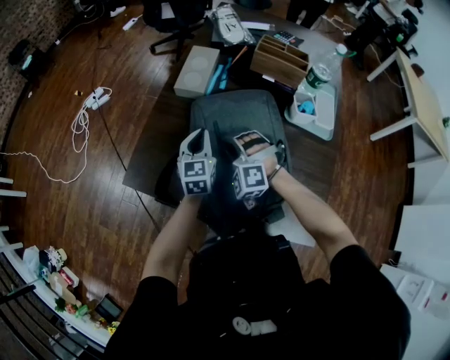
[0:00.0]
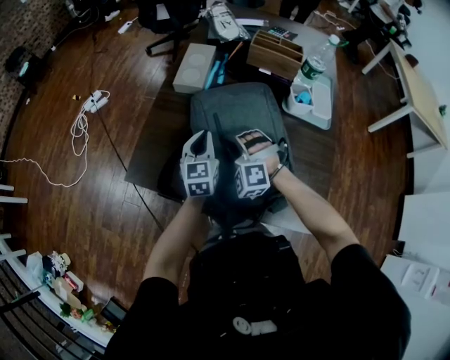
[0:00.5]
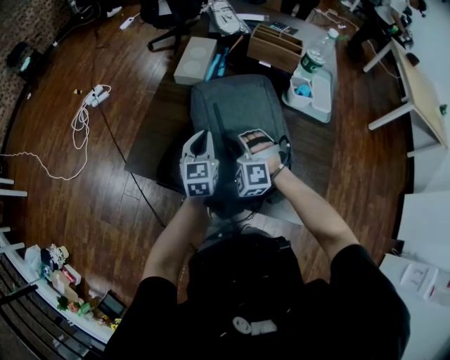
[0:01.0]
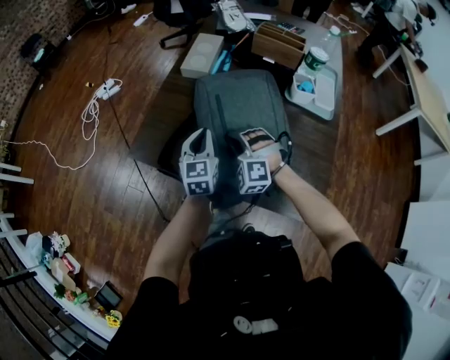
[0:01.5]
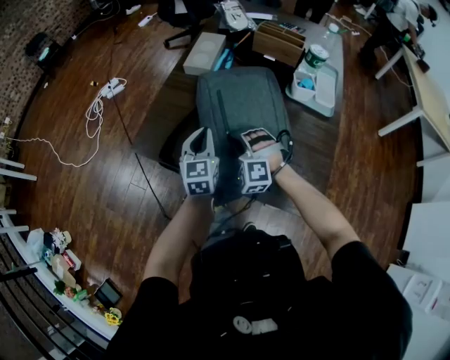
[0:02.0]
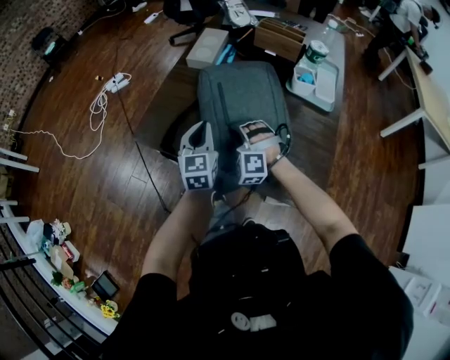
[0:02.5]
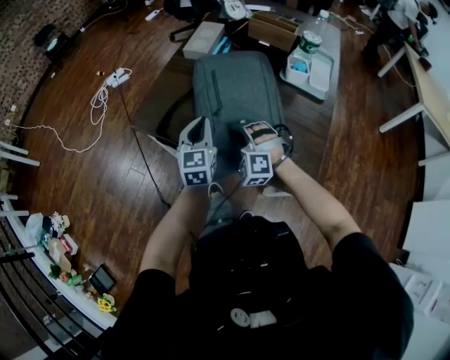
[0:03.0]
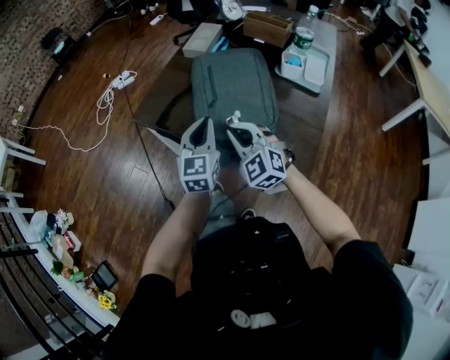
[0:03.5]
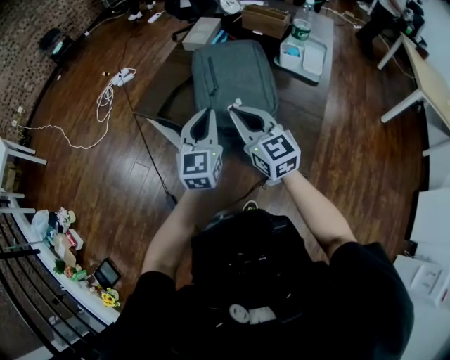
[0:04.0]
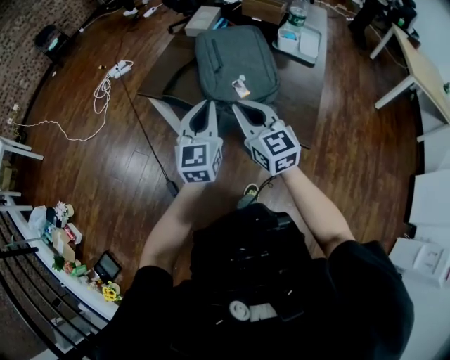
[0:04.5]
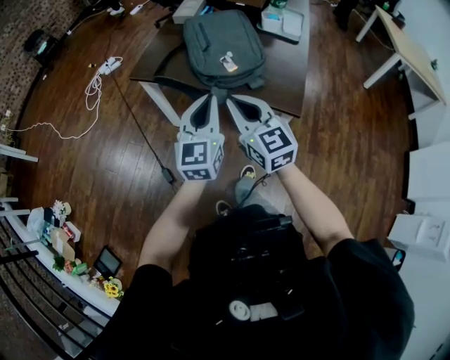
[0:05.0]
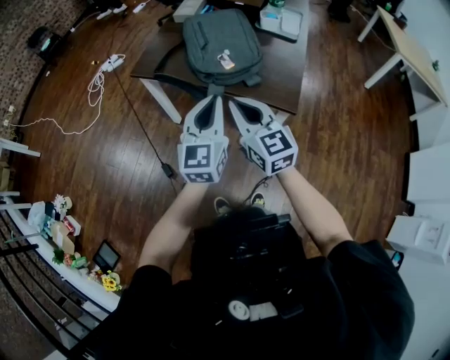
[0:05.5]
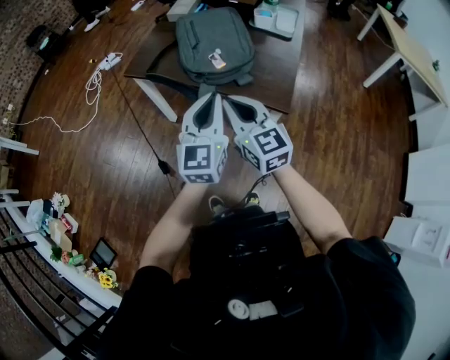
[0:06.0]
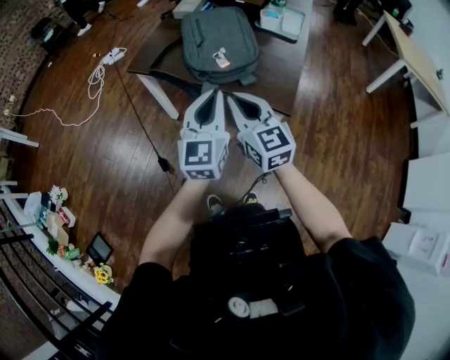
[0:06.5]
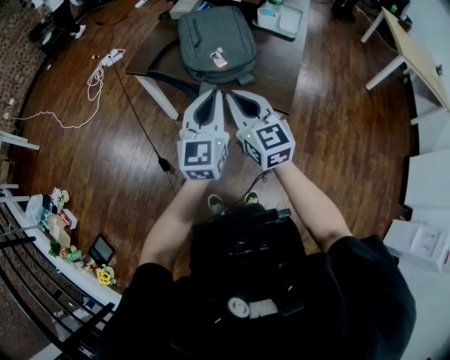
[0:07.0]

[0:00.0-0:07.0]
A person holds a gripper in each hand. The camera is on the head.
0:00.0 to 0:02.0: The two grippers go some 10 cm backward.
0:02.0 to 0:03.5: The two grippers go some 15 cm backward and upward. The right gripper swivels some 40 degrees.
0:03.5 to 0:05.0: The left gripper heads backward, covering some 20 cm. Meanwhile the right gripper moves backward and upward, some 20 cm, and rotates about 40 degrees.
0:05.0 to 0:07.0: The two grippers go about 5 cm to the right.

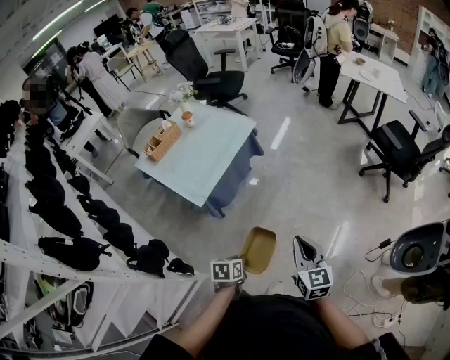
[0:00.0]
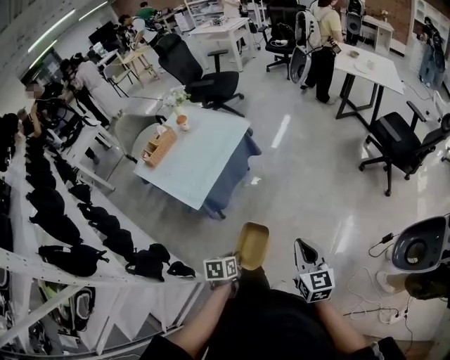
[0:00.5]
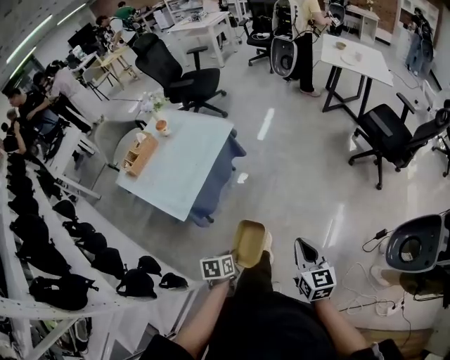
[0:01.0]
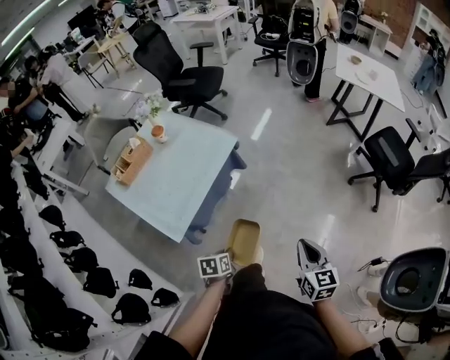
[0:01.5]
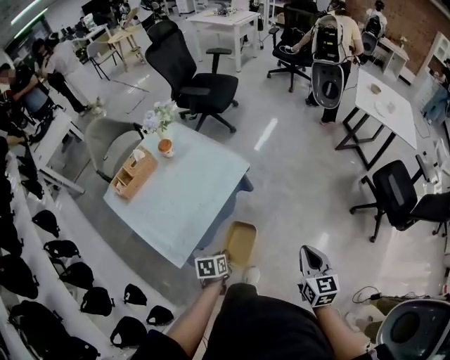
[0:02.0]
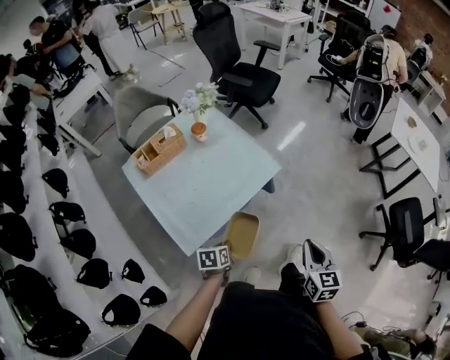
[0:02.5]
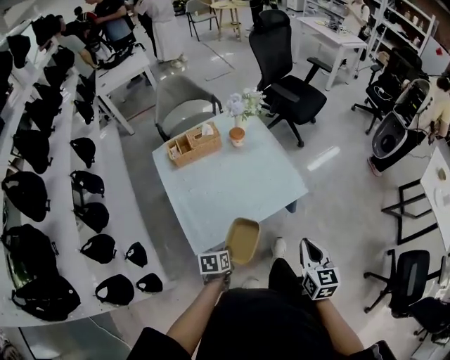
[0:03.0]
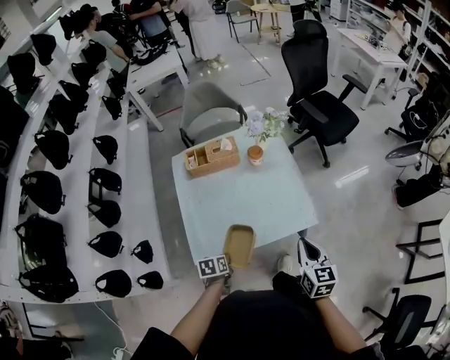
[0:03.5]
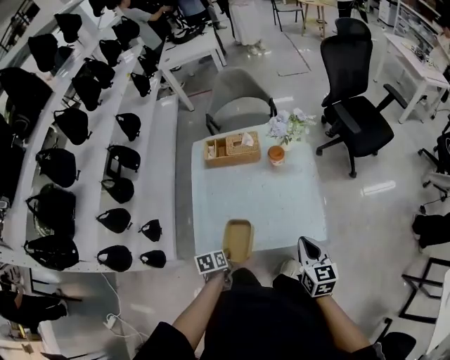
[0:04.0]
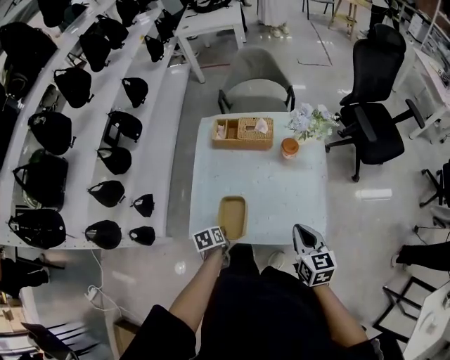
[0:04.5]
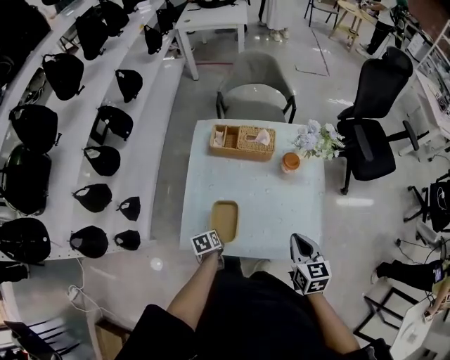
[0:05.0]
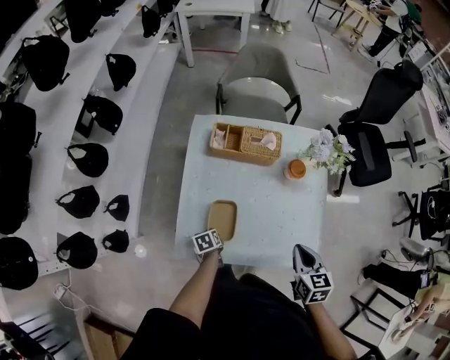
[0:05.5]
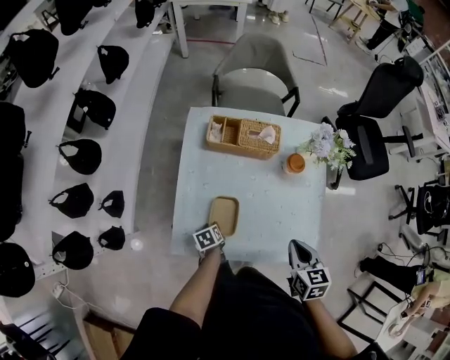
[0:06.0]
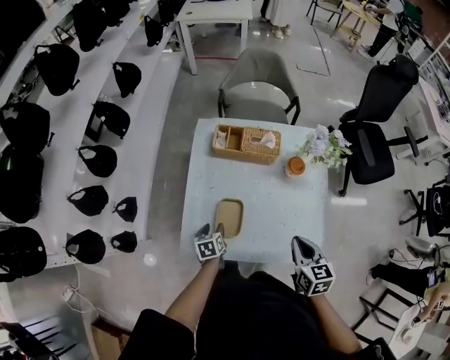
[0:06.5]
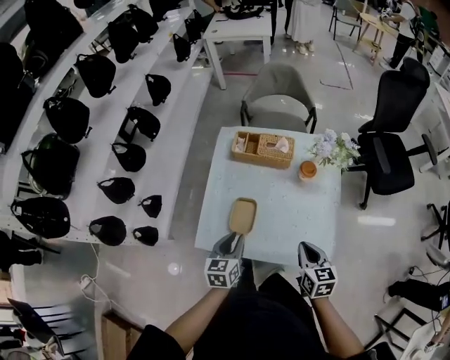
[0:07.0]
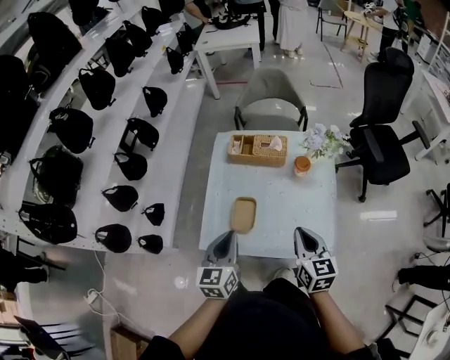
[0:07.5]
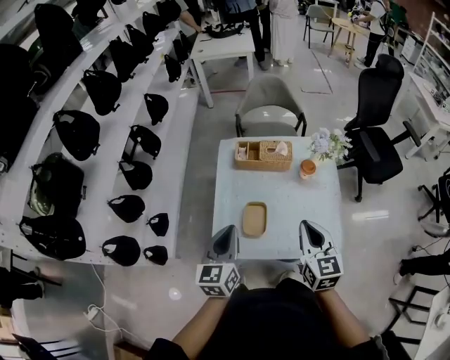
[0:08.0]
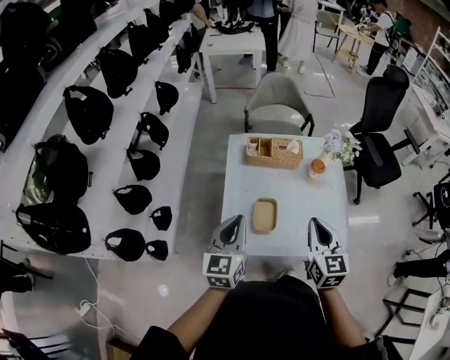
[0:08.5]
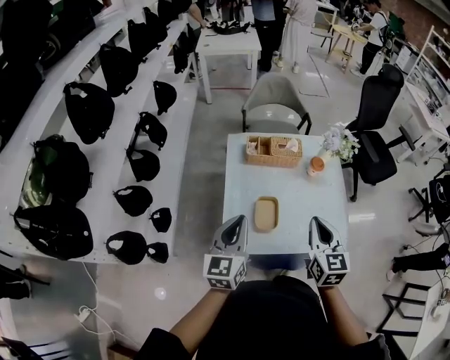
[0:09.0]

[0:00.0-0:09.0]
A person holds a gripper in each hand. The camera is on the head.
0:00.0 to 0:02.0: The grippers both shift forward by roughly 40 cm.
0:02.0 to 0:04.5: The left gripper ends up roughly 25 cm from where it was, and twists roughly 60 degrees counterclockwise, seen from behind. Meanwhile the right gripper ends up about 50 cm from where it was, and changes its angle by roughly 70 degrees.
0:04.5 to 0:07.0: The right gripper goes forward and returns, some 10 cm each way; the left gripper is displaced upward by some 15 cm, tilts its fingers some 30 degrees upward, and opens up.
0:07.0 to 0:09.0: The left gripper shifts some 25 cm upward and to the left, turns by approximately 20 degrees, and closes up; the right gripper heads to the left and upward, covering roughly 25 cm, and turns by roughly 20 degrees.

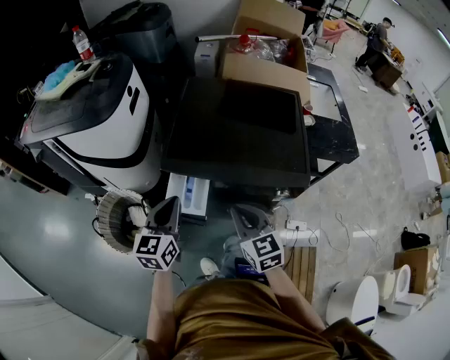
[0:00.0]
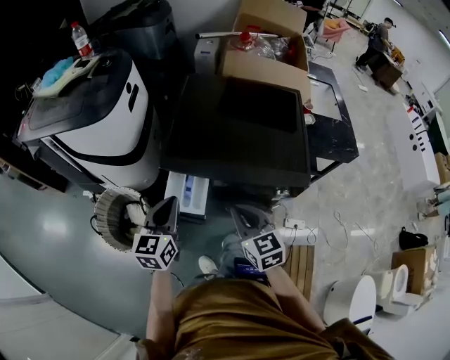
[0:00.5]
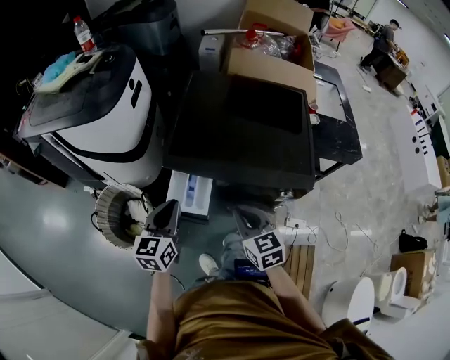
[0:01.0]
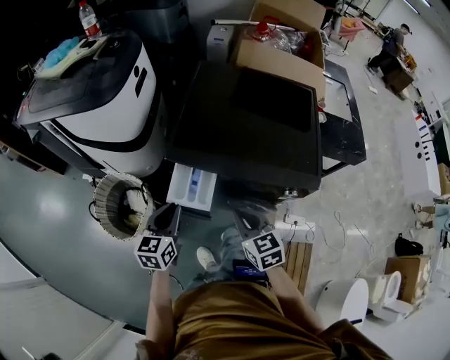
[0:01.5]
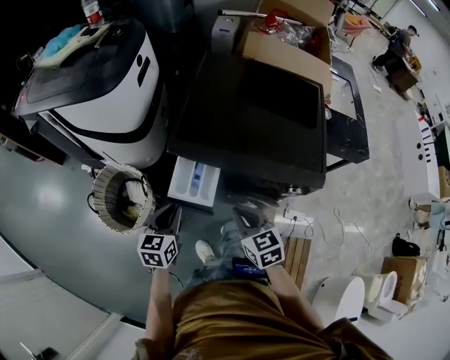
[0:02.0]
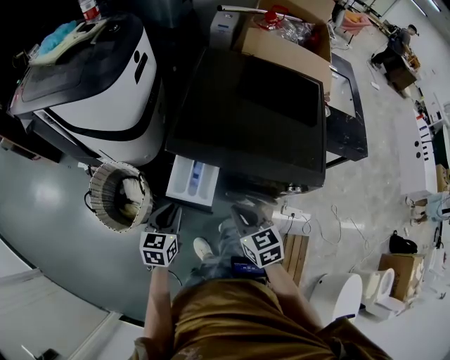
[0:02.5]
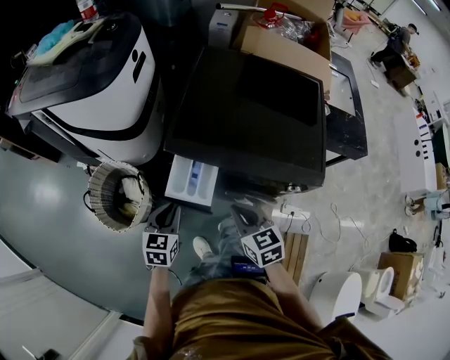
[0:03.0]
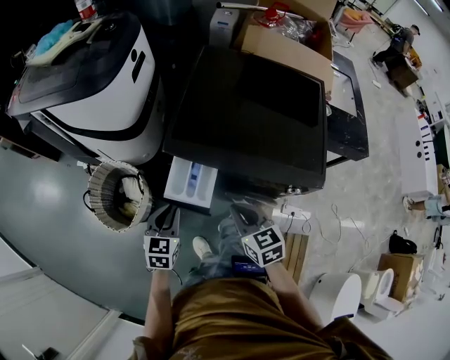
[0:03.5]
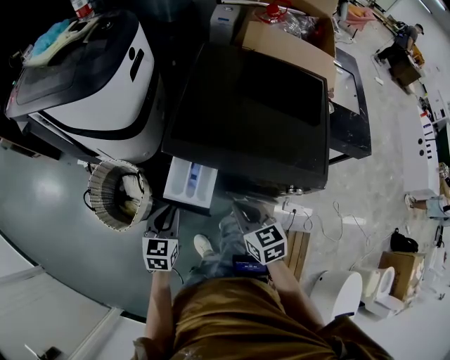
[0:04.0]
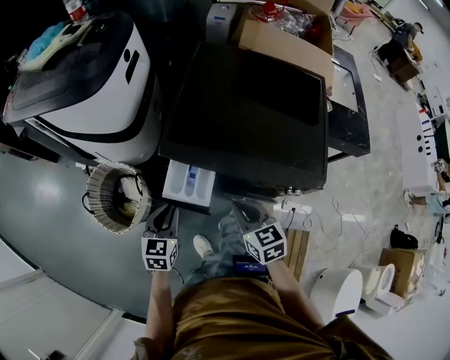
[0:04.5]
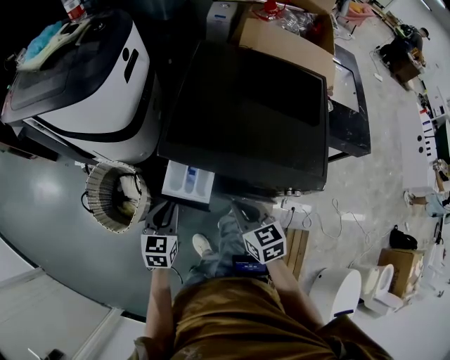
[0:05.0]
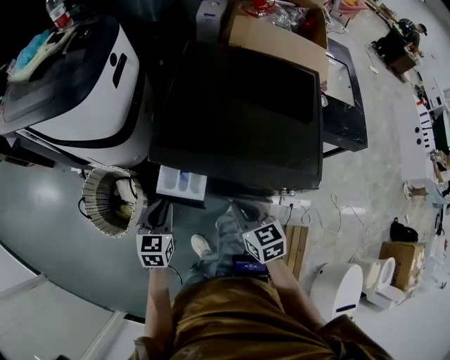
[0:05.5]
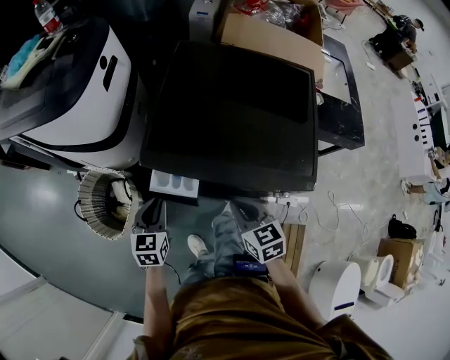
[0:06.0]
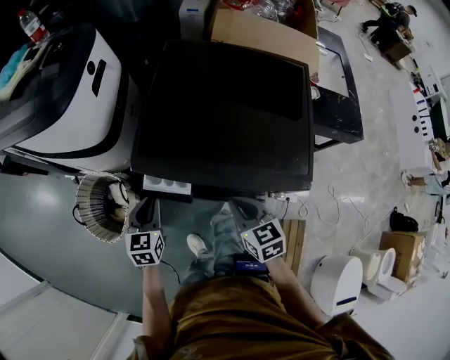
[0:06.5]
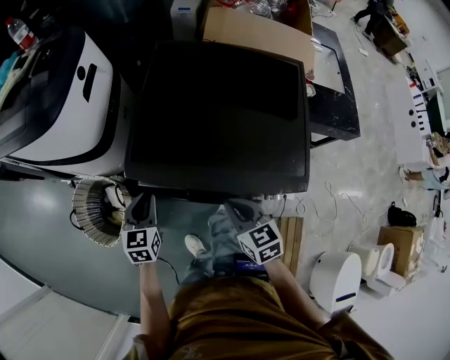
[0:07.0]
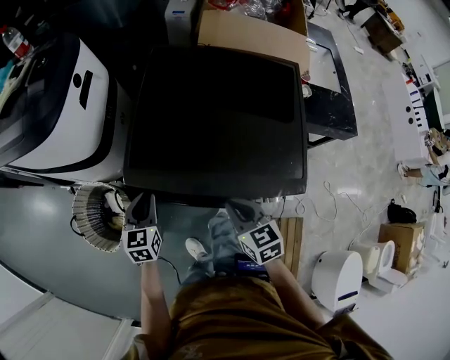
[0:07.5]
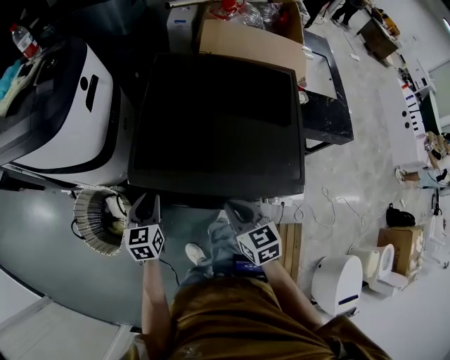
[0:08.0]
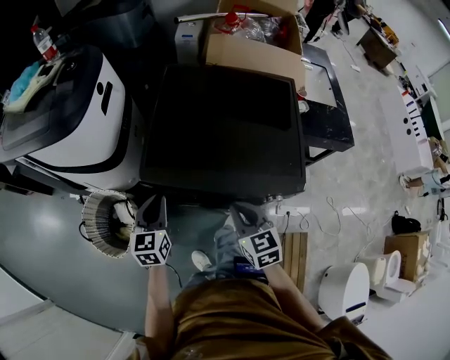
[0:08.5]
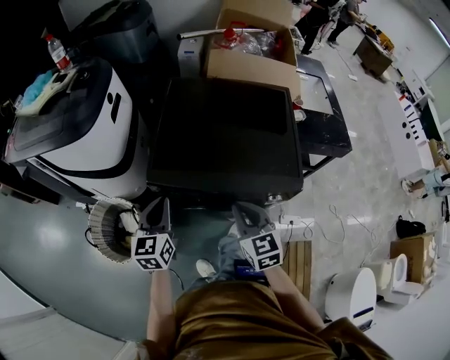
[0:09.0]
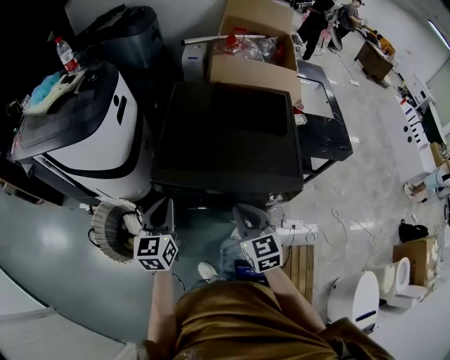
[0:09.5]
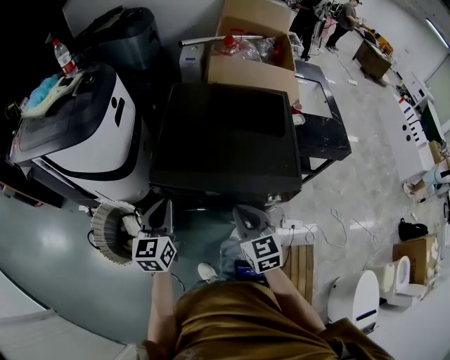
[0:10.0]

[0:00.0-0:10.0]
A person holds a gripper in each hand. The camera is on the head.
0:00.0 to 0:02.0: The right gripper travels downward by roughly 10 cm; the left gripper is displaced downward by some 15 cm.
0:02.0 to 0:04.0: There are only small adjustments of the grippers.
0:04.0 to 0:06.0: The right gripper is displaced to the right by some 5 cm. The left gripper travels forward by some 5 cm.
0:06.0 to 0:08.0: The left gripper moves forward, about 5 cm.
0:08.0 to 0:10.0: The right gripper is displaced upward and backward by approximately 10 cm. Meanwhile the left gripper is displaced upward and backward by about 15 cm.

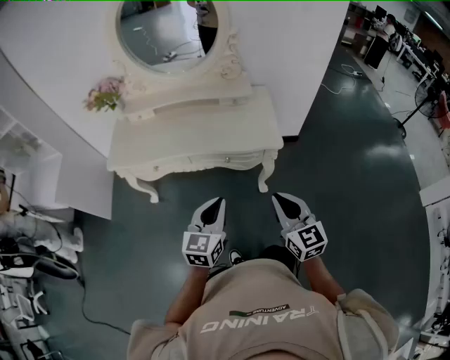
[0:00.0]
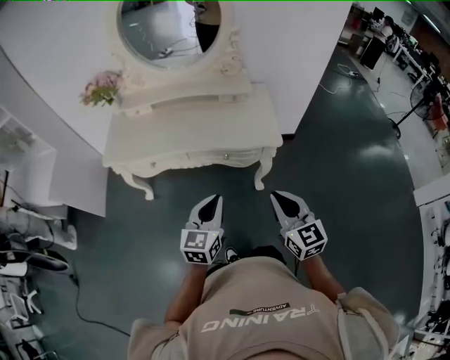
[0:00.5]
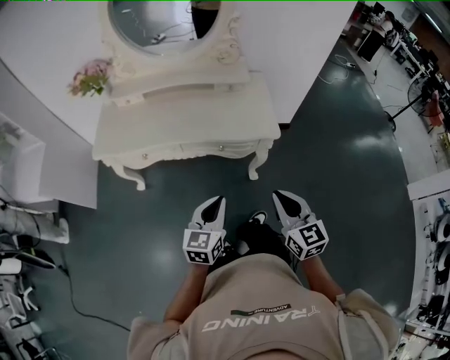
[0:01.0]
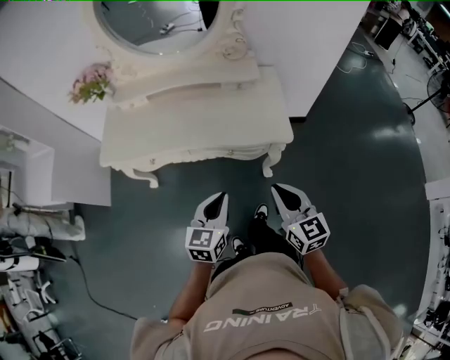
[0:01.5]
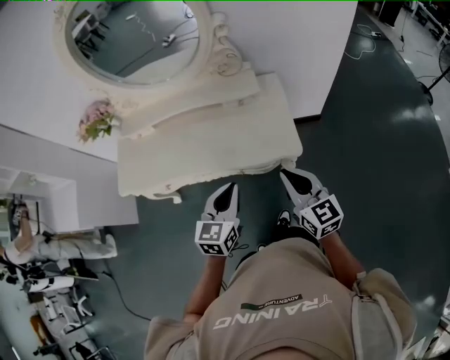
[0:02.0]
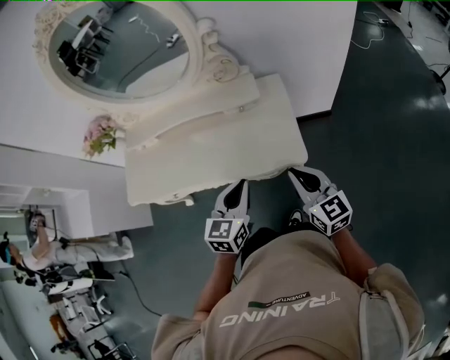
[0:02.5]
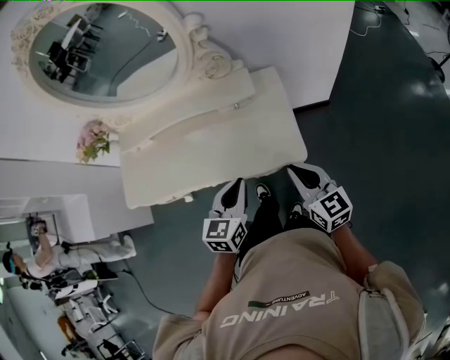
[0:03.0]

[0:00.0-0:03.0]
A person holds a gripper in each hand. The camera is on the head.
0:00.0 to 0:01.5: The two grippers go some 5 cm forward.
0:01.5 to 0:03.0: Both grippers move forward and to the right, approximately 20 cm.
